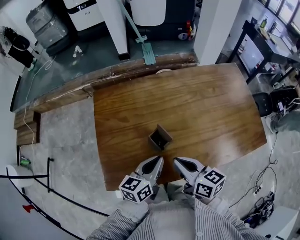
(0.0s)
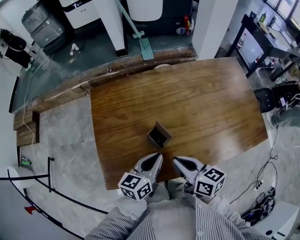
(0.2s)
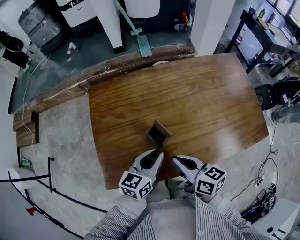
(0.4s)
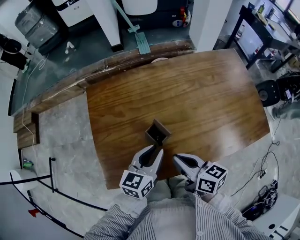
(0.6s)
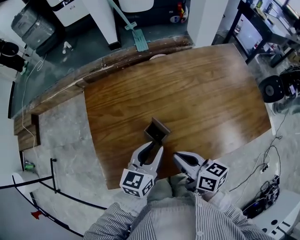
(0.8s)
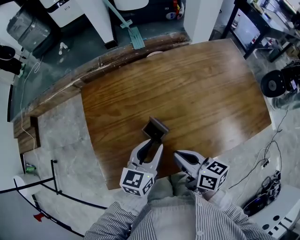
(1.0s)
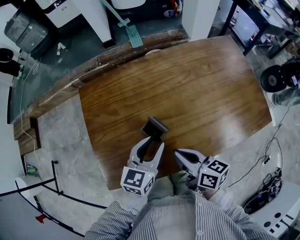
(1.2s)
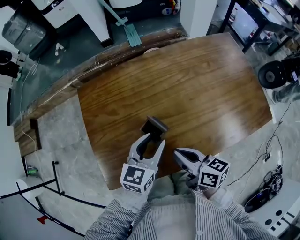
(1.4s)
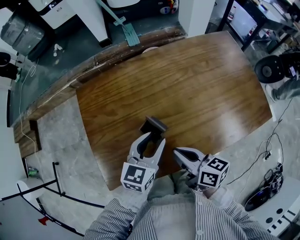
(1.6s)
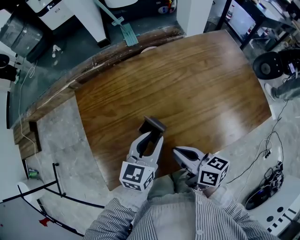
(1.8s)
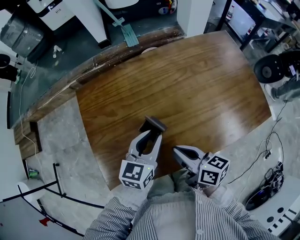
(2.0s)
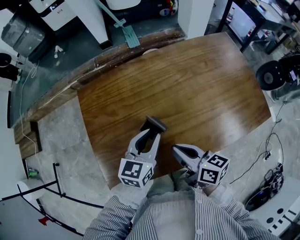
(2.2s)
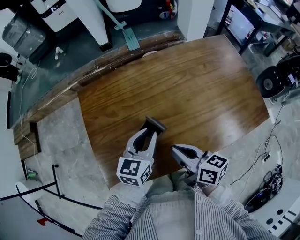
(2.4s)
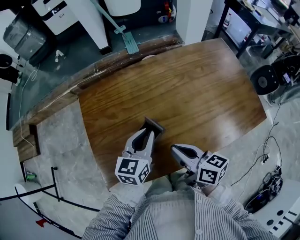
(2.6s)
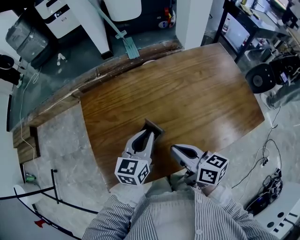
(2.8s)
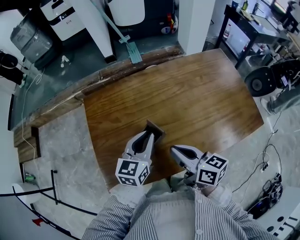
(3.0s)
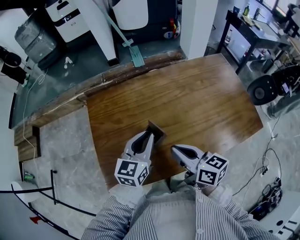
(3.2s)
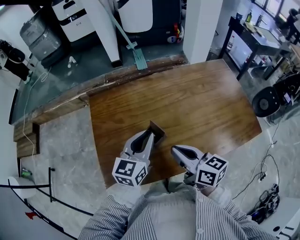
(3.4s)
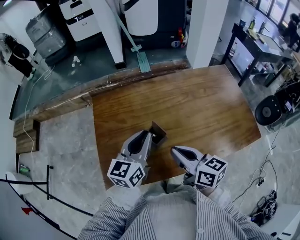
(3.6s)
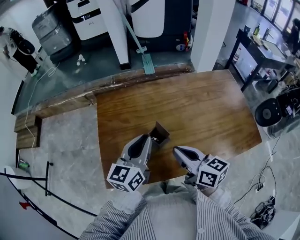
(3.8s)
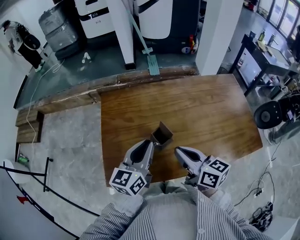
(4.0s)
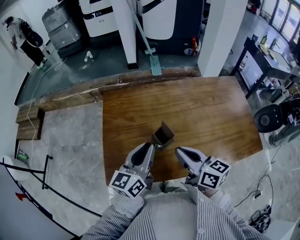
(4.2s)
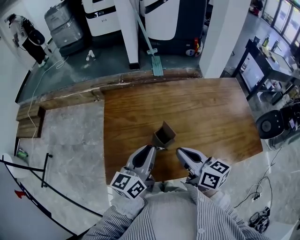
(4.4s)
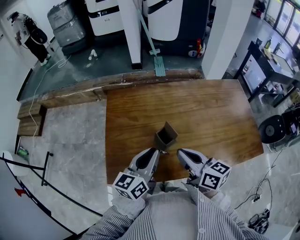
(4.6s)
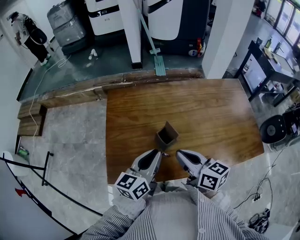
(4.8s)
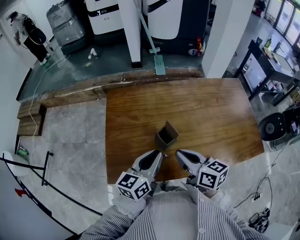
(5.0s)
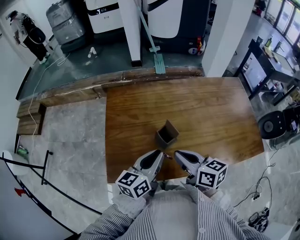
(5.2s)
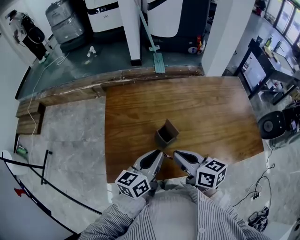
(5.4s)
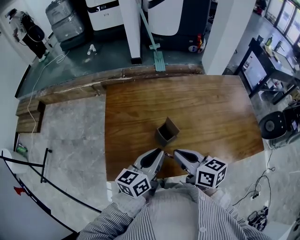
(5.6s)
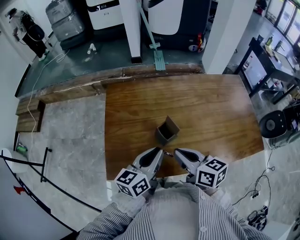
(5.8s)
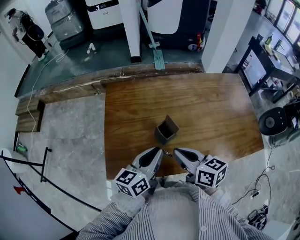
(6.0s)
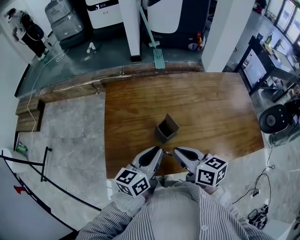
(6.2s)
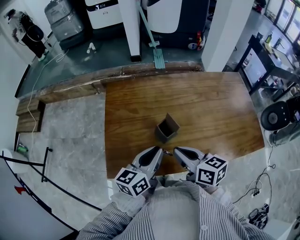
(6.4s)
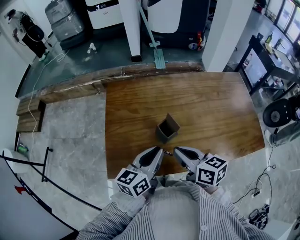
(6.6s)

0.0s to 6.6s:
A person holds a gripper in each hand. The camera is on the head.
0.0s to 1.6s: The left gripper changes place by roughly 5 cm, rotates about 30 degrees, and opens up.
1.6s to 3.2s: Both grippers move upward, about 5 cm. The left gripper closes its fingers.
3.2s to 5.0s: The left gripper shifts roughly 5 cm backward, and turns by some 20 degrees.
5.0s to 6.6s: There are only small adjustments of the grippers.

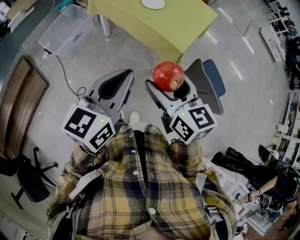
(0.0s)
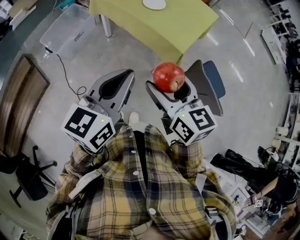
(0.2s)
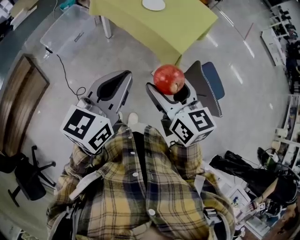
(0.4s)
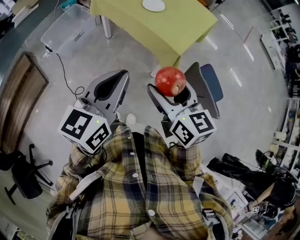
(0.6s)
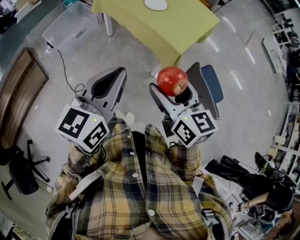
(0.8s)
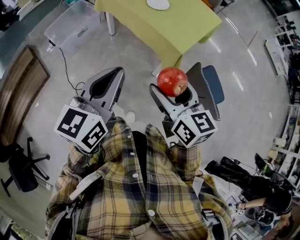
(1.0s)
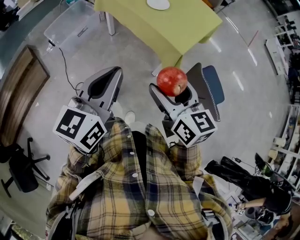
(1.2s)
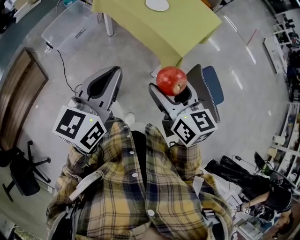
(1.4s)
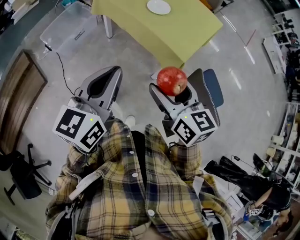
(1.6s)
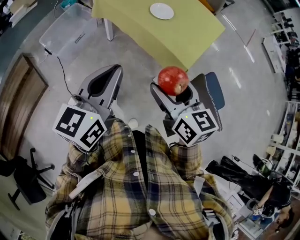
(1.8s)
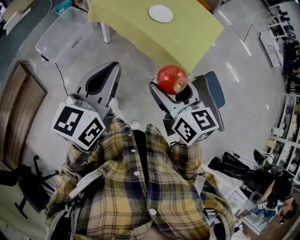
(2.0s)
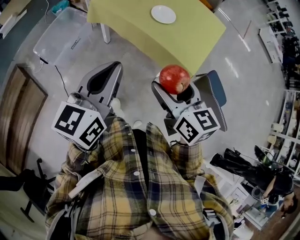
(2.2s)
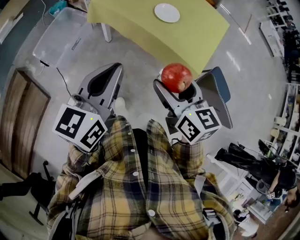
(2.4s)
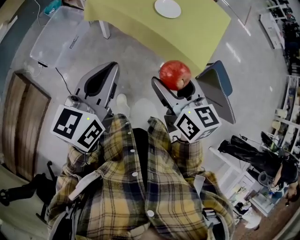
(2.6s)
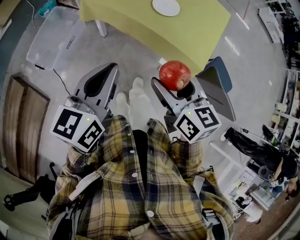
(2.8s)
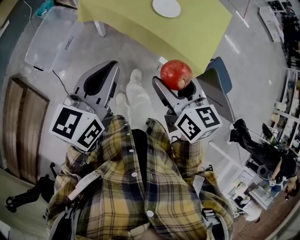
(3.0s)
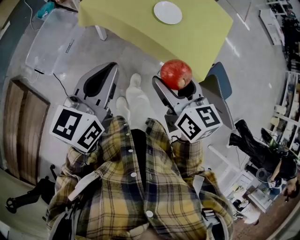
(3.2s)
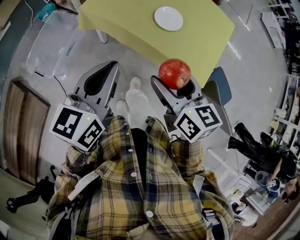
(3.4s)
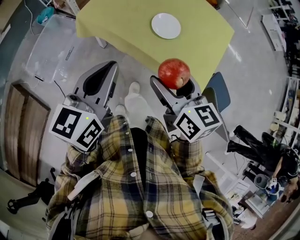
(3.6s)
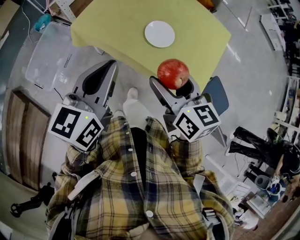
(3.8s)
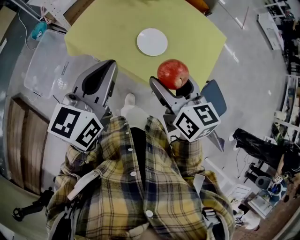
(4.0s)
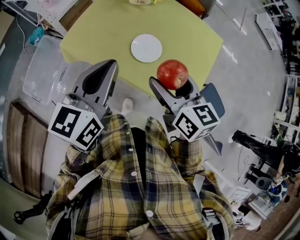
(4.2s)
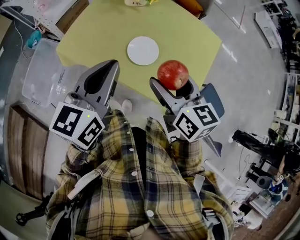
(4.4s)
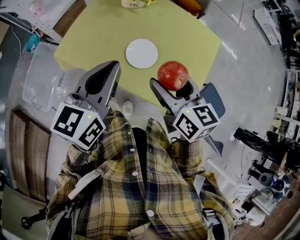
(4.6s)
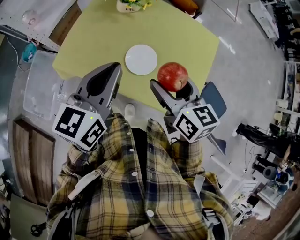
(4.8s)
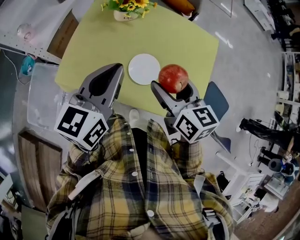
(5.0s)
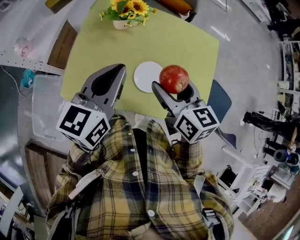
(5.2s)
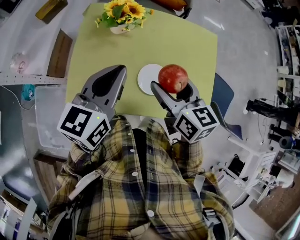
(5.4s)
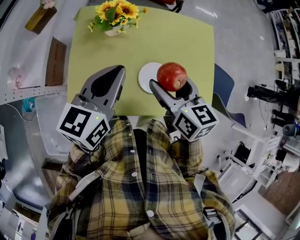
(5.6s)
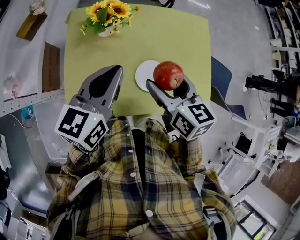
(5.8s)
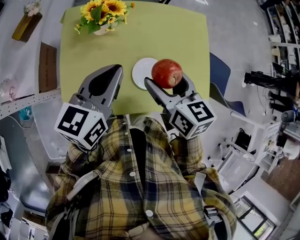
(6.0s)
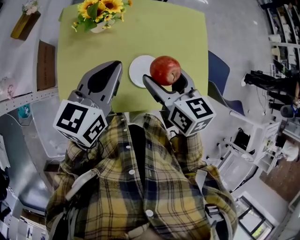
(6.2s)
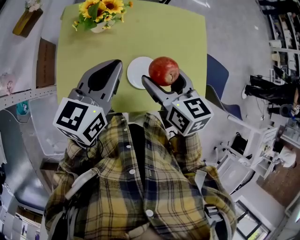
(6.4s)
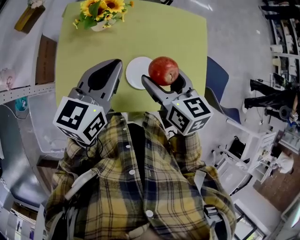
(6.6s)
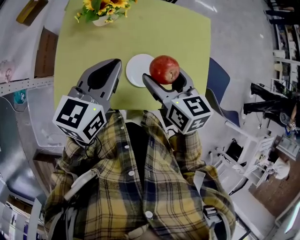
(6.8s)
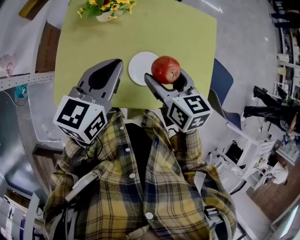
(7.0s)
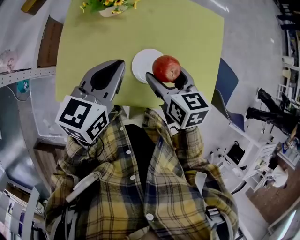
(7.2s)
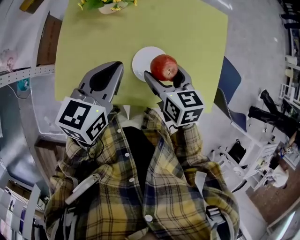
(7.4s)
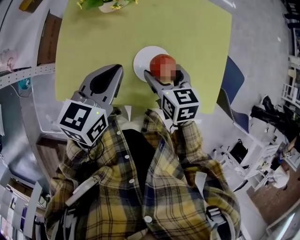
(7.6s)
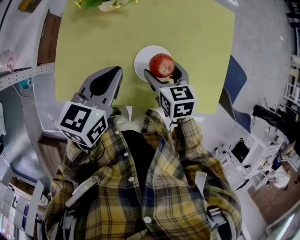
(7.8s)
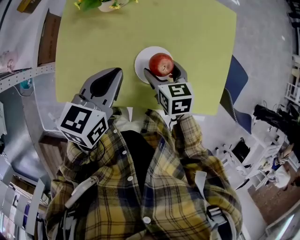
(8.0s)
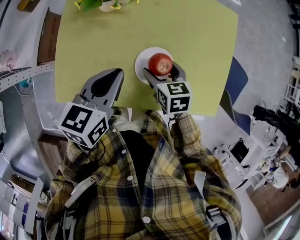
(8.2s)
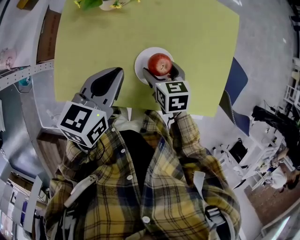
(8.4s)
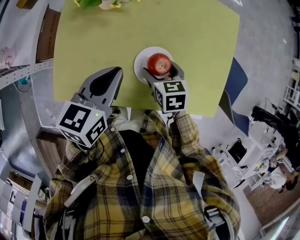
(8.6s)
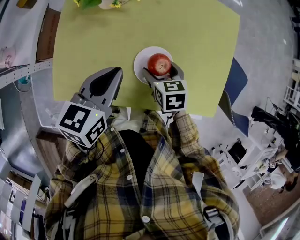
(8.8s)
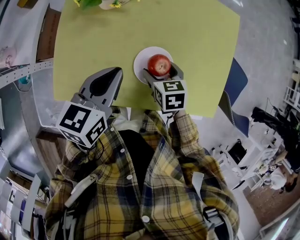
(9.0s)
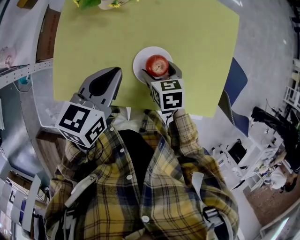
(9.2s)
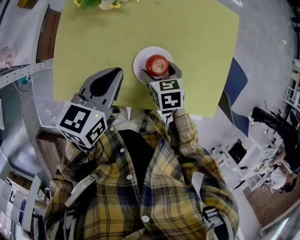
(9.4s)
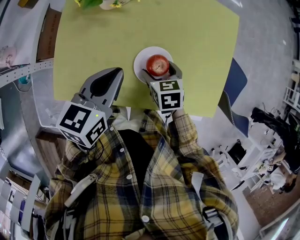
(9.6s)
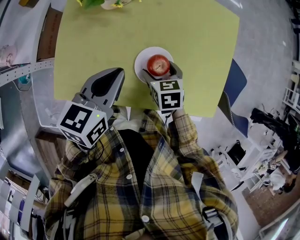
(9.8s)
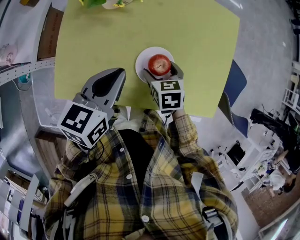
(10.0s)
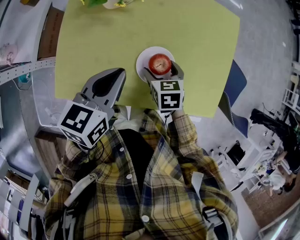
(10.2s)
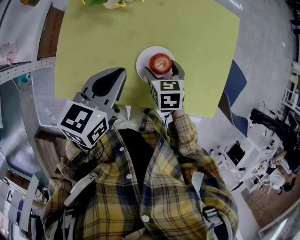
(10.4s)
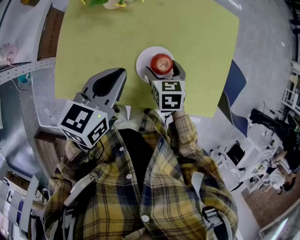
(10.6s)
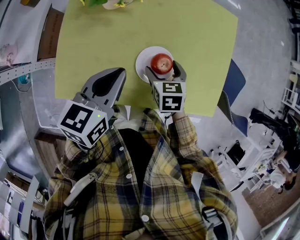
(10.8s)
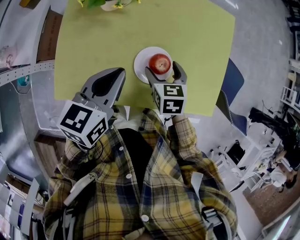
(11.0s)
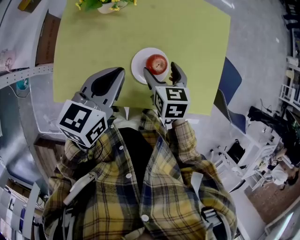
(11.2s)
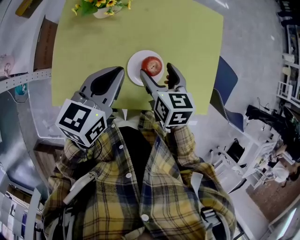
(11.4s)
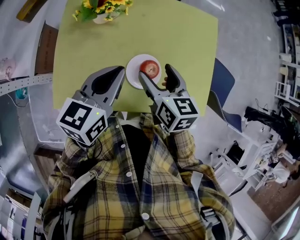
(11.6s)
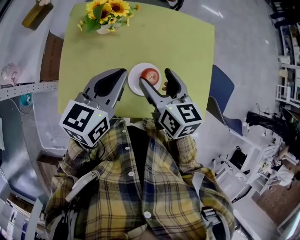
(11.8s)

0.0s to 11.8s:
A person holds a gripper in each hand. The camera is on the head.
0.0s to 1.4s: The grippers make only small movements.
1.4s to 3.0s: Both grippers move forward and to the left, approximately 30 cm.
3.0s to 4.4s: Both grippers travel together forward, about 25 cm.
4.4s to 6.0s: The left gripper ends up approximately 20 cm from where it was, and swivels roughly 40 degrees, while the right gripper ends up approximately 15 cm from where it was, and turns by about 30 degrees.
6.0s to 7.4s: The left gripper is displaced downward by approximately 5 cm, while the right gripper goes about 10 cm downward.
7.4s to 8.8s: The right gripper travels downward by about 10 cm.
8.8s to 10.4s: The grippers move only a little.
10.4s to 11.8s: The left gripper shifts about 10 cm upward, while the right gripper goes about 20 cm upward, and changes its angle by roughly 30 degrees.

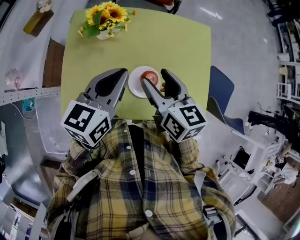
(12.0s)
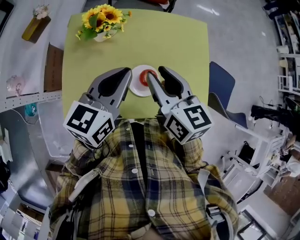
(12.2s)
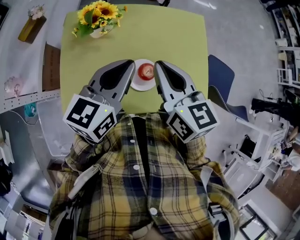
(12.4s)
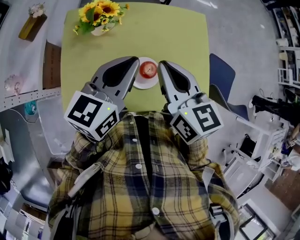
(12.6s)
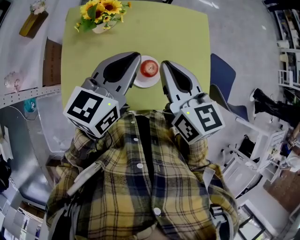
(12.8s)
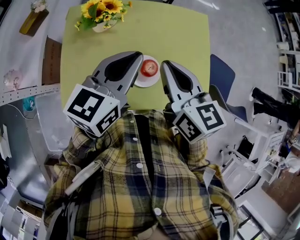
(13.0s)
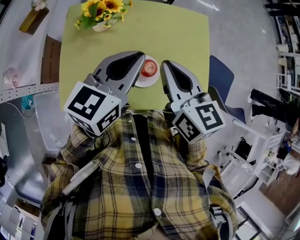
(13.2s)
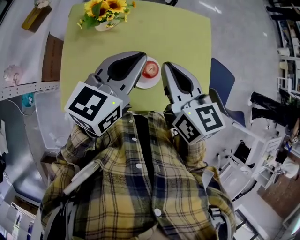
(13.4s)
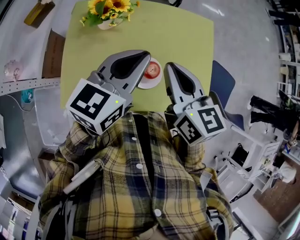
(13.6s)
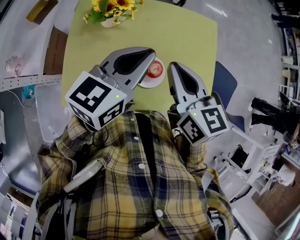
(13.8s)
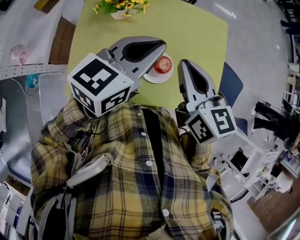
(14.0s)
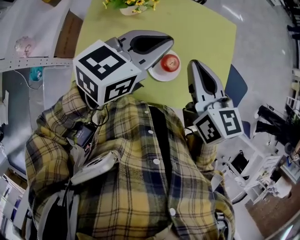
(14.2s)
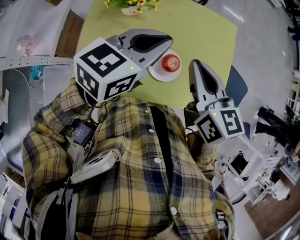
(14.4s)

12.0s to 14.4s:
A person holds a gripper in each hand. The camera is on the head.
12.0s to 13.2s: The right gripper shifts about 5 cm upward, and closes its fingers. The left gripper changes place by roughly 5 cm.
13.2s to 14.4s: The grippers make only small movements.

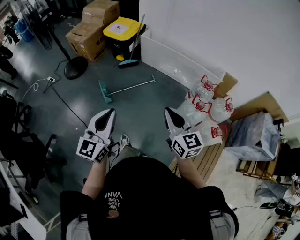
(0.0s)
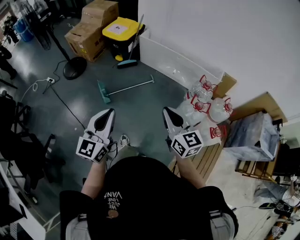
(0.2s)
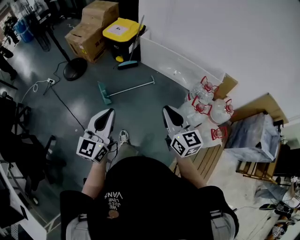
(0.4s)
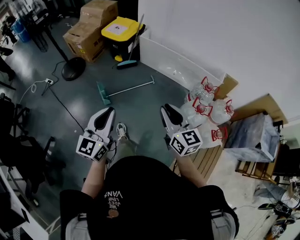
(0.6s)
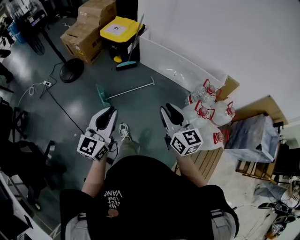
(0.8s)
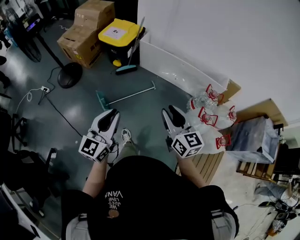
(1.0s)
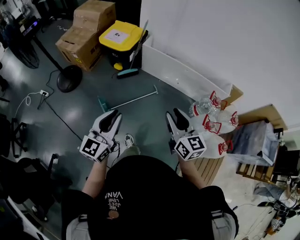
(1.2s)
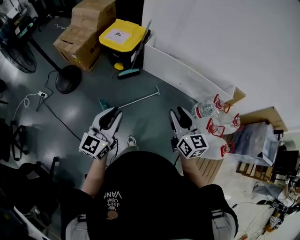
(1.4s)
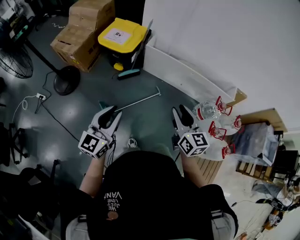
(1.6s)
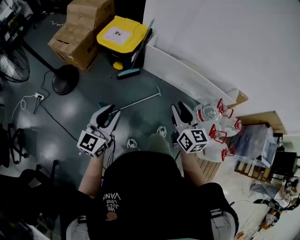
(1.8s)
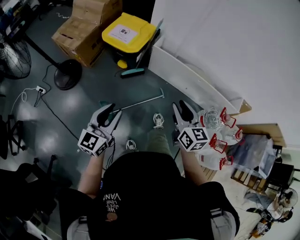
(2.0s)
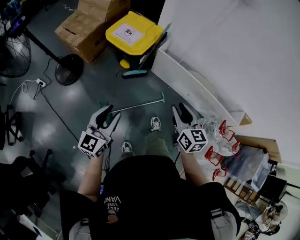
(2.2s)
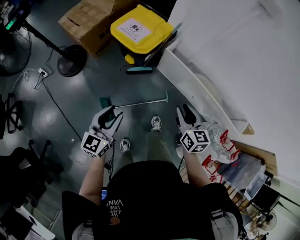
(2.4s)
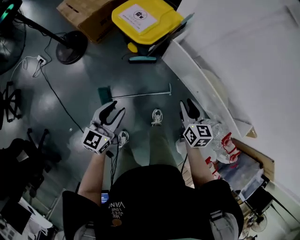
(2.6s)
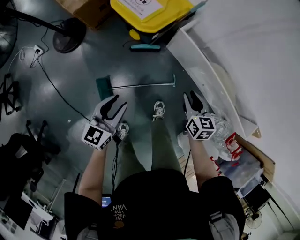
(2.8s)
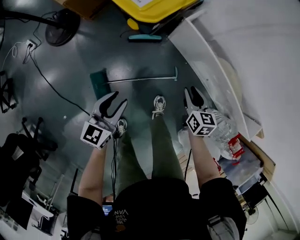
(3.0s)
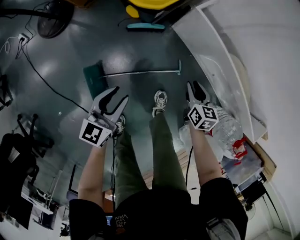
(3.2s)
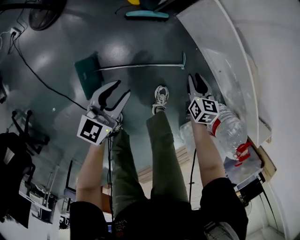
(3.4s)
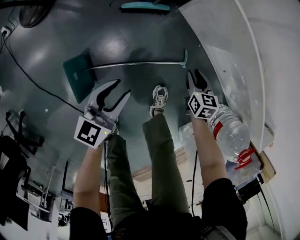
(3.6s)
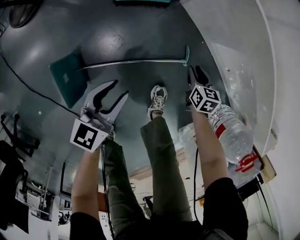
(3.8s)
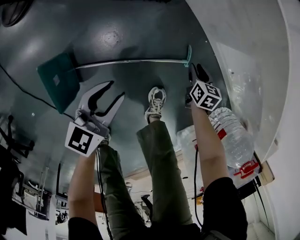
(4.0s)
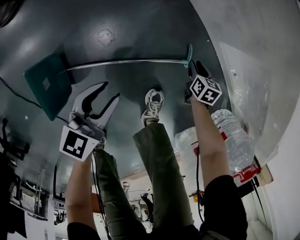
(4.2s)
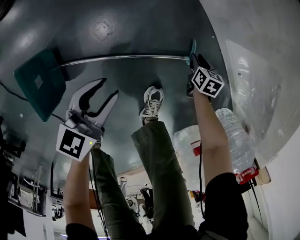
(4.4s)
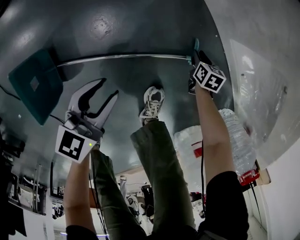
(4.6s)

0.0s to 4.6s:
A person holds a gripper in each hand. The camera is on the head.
0.0s to 1.6s: The left gripper travels forward and to the left by approximately 35 cm. The right gripper travels forward by roughly 35 cm, and opens up.
1.6s to 3.0s: The right gripper shifts approximately 50 cm forward and downward, and turns by some 30 degrees. The left gripper is displaced downward and forward by roughly 40 cm, and changes its angle by some 30 degrees.
3.0s to 4.6s: The grippers both shift downward by about 50 cm. The right gripper swivels about 30 degrees.
